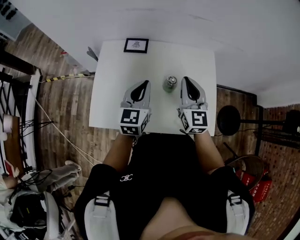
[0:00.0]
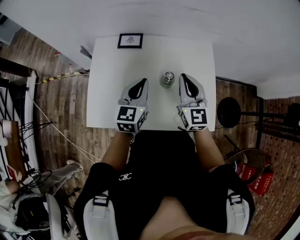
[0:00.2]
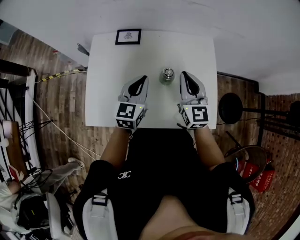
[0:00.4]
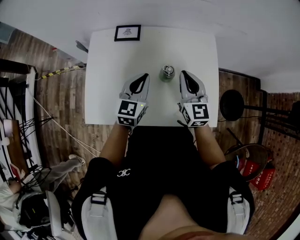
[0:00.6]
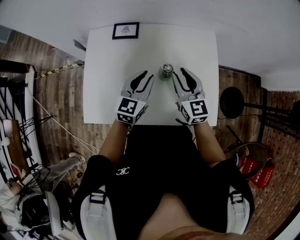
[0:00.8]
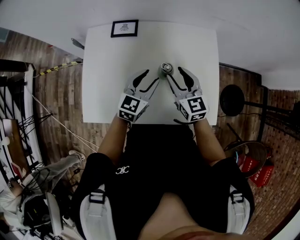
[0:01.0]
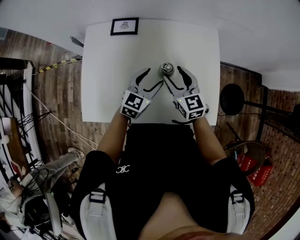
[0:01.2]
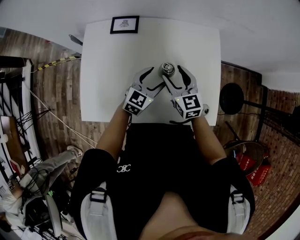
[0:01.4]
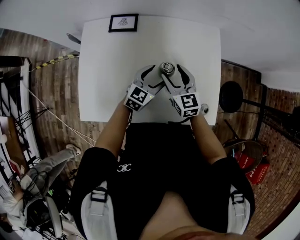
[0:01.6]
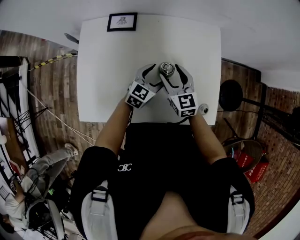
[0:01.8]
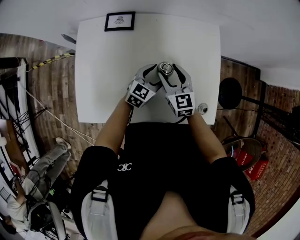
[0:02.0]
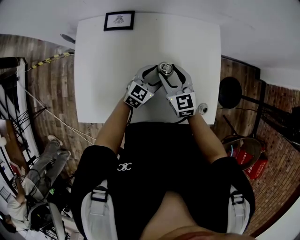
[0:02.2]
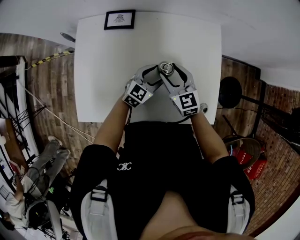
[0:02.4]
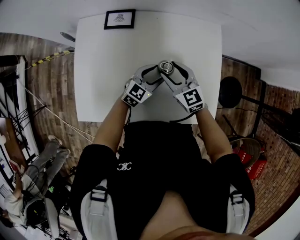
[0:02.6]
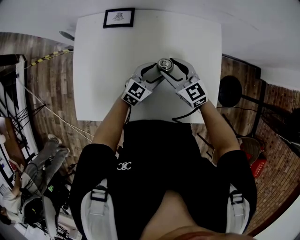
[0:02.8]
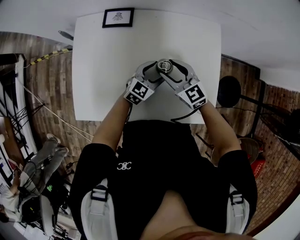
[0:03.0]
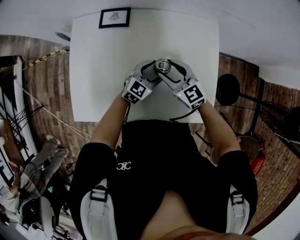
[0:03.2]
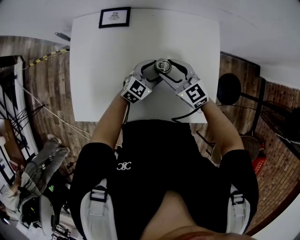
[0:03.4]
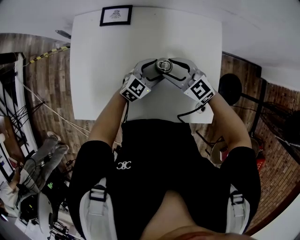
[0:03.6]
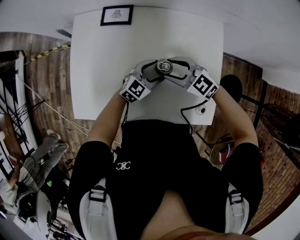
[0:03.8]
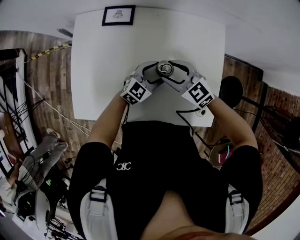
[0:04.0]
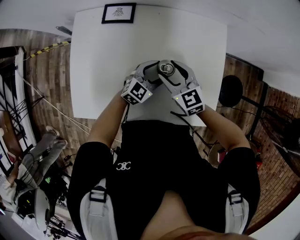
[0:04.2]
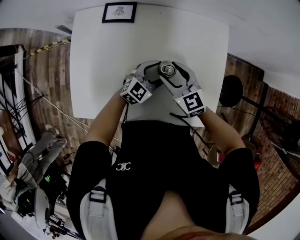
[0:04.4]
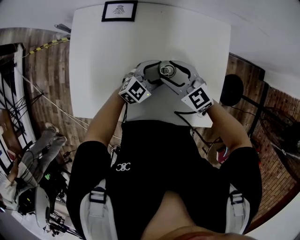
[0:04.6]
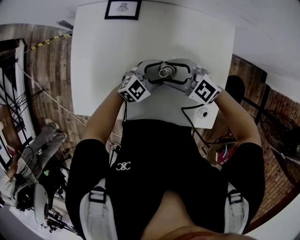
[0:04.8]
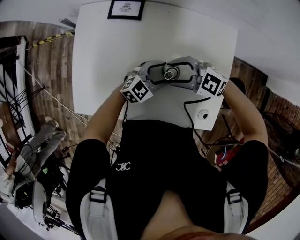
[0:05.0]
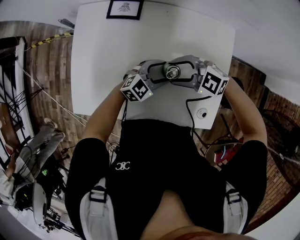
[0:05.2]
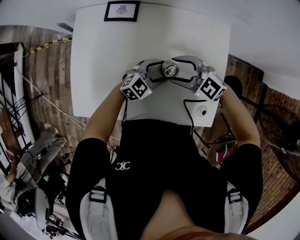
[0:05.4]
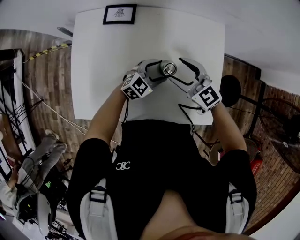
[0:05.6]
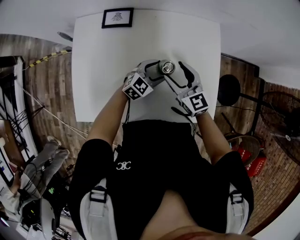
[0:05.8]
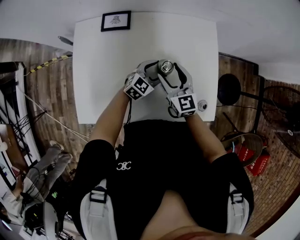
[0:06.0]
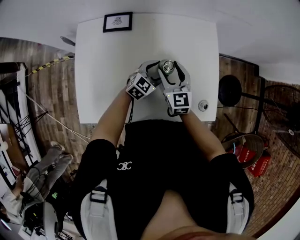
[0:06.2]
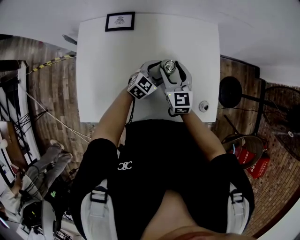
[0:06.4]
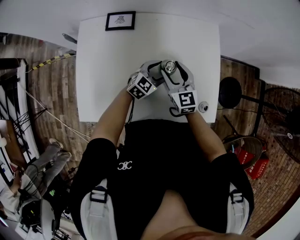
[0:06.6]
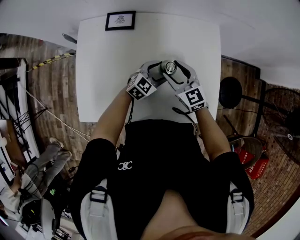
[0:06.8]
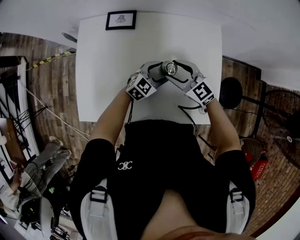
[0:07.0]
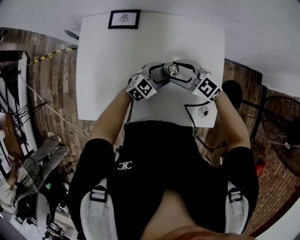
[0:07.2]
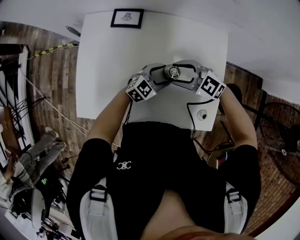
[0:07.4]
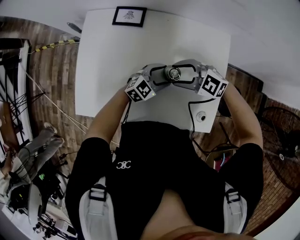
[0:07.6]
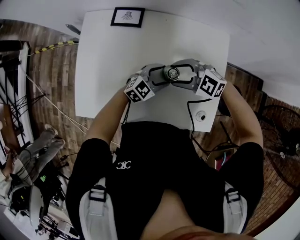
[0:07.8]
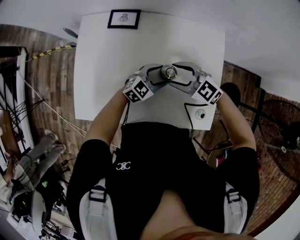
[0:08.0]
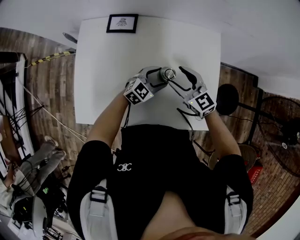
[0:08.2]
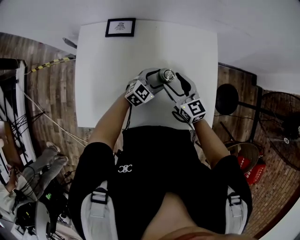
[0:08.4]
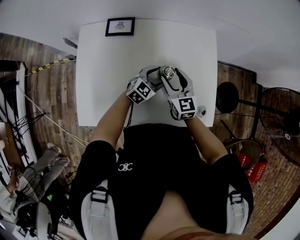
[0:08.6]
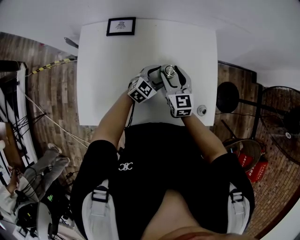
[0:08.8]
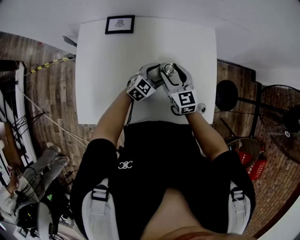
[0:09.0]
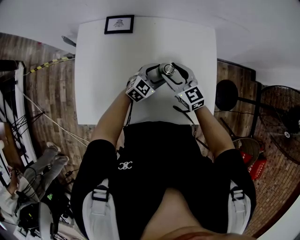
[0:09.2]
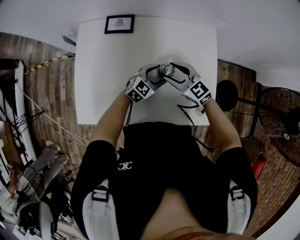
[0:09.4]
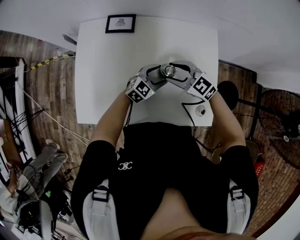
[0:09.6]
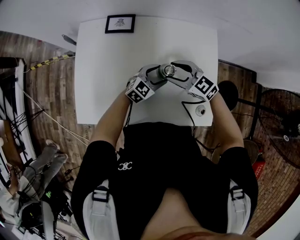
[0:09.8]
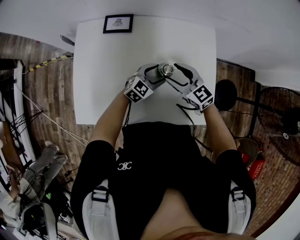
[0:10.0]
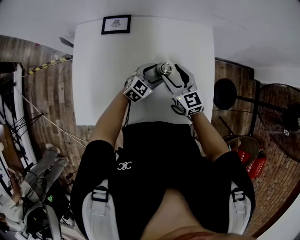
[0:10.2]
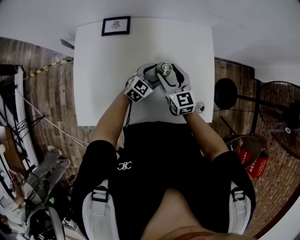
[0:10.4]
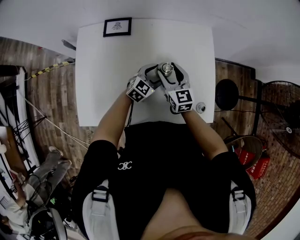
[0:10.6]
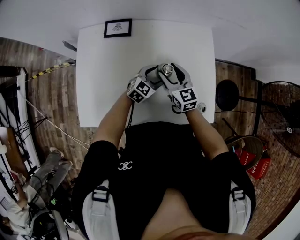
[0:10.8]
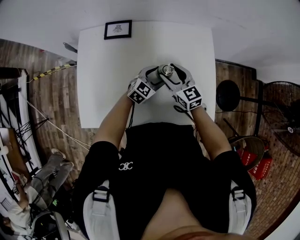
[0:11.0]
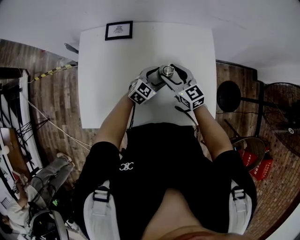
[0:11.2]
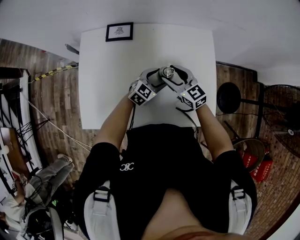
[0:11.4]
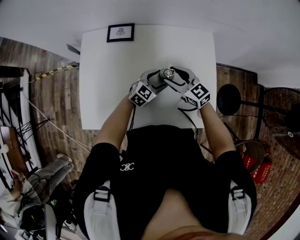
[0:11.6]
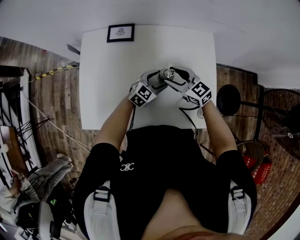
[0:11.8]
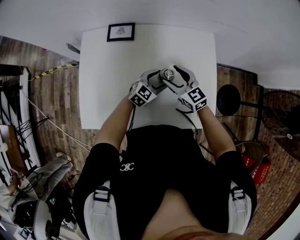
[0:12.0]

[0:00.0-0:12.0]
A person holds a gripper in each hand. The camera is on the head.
0:00.0 to 0:01.6: The right gripper shifts roughly 15 cm downward, changes its angle by approximately 20 degrees, and opens, while the left gripper moves downward and to the right, some 20 cm, changes its angle by approximately 30 degrees, and opens its fingers.
0:01.6 to 0:03.0: The right gripper swivels about 20 degrees.
0:04.4 to 0:06.0: The right gripper changes its angle by approximately 20 degrees.
0:06.0 to 0:07.6: The right gripper swivels some 70 degrees.
0:07.6 to 0:09.0: The right gripper turns by approximately 70 degrees.

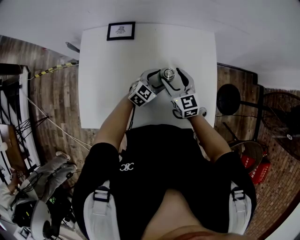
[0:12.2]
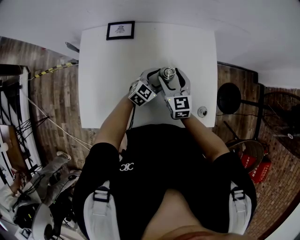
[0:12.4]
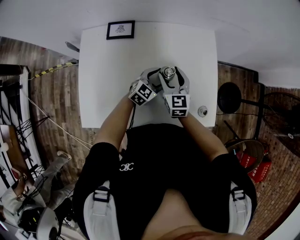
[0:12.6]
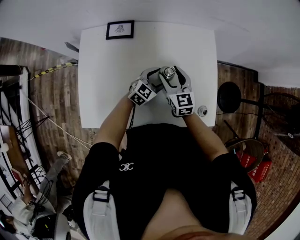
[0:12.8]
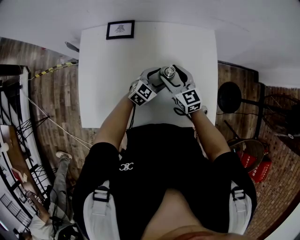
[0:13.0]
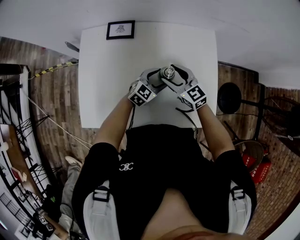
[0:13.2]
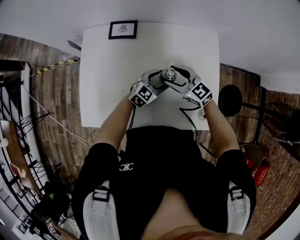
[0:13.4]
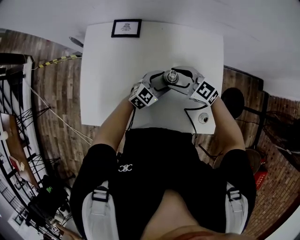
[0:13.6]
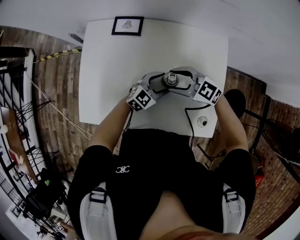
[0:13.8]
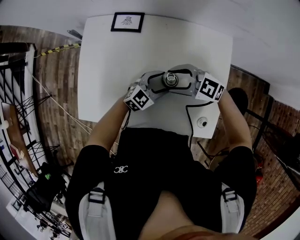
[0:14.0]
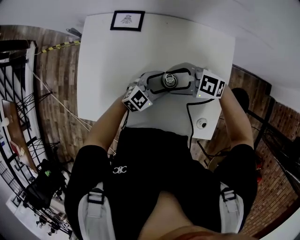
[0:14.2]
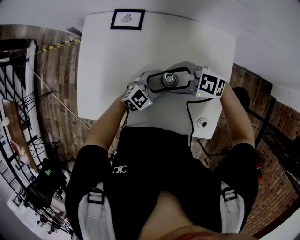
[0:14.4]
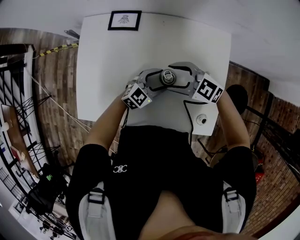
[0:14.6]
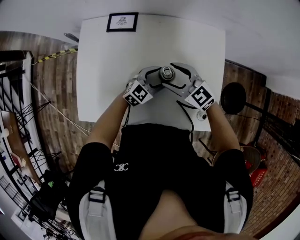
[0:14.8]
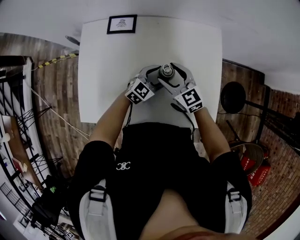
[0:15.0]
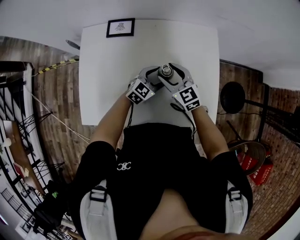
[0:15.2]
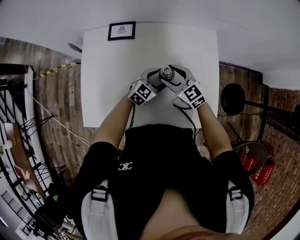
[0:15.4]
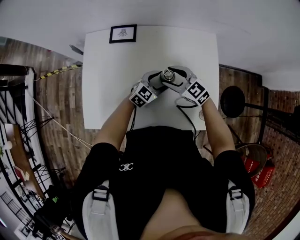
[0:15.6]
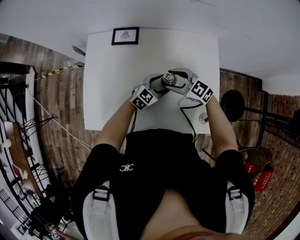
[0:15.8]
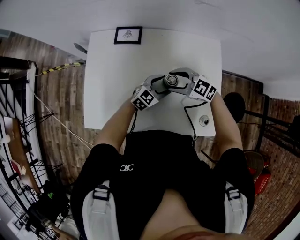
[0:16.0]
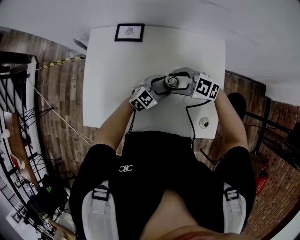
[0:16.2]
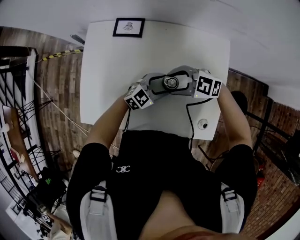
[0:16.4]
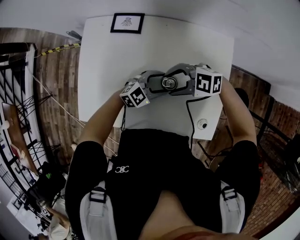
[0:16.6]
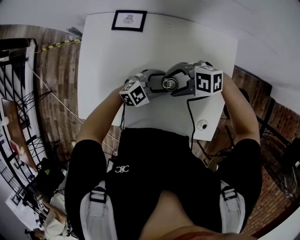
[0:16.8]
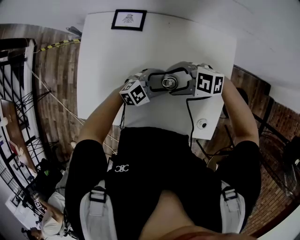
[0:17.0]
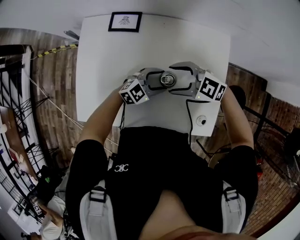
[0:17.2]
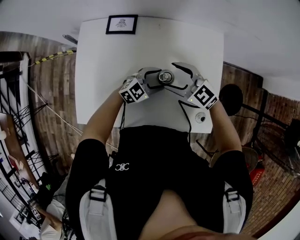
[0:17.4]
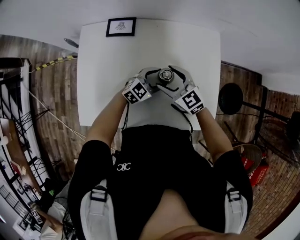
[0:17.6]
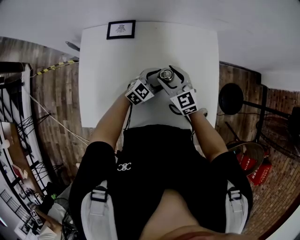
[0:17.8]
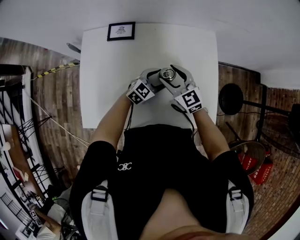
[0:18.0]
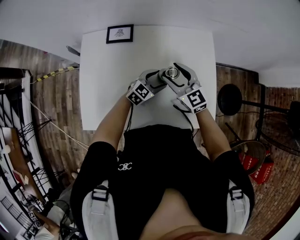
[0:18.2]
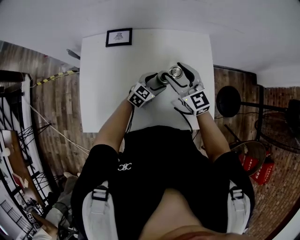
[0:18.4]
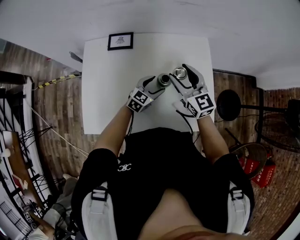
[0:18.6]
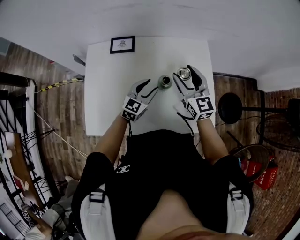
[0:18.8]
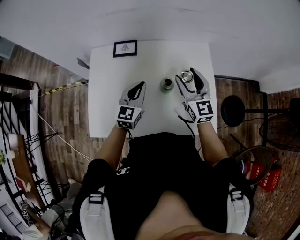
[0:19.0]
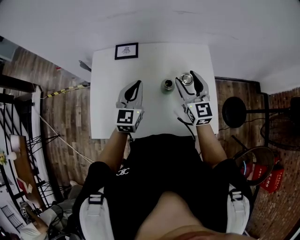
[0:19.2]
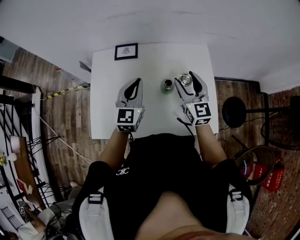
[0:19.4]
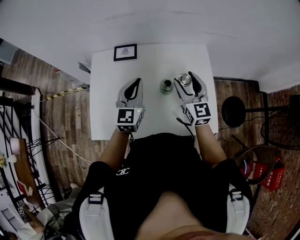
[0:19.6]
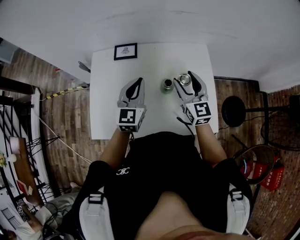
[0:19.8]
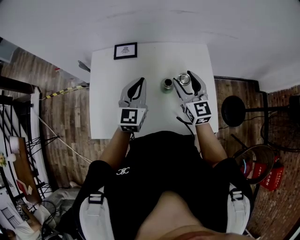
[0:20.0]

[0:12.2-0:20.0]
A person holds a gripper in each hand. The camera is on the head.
0:12.2 to 0:13.8: The right gripper swivels approximately 50 degrees.
0:13.8 to 0:15.4: The right gripper rotates approximately 30 degrees.
0:15.4 to 0:16.8: The right gripper turns by some 70 degrees.
0:16.8 to 0:18.4: The right gripper heads upward, covering some 10 cm, and rotates about 80 degrees.
0:18.4 to 0:20.0: The right gripper ends up about 5 cm from where it was, while the left gripper shifts about 25 cm upward and to the left, turns by approximately 40 degrees, and closes up.

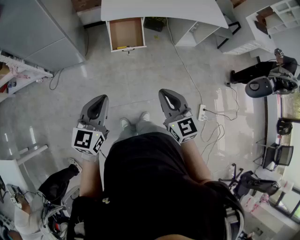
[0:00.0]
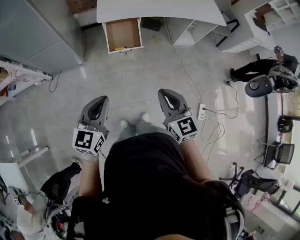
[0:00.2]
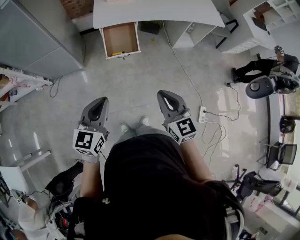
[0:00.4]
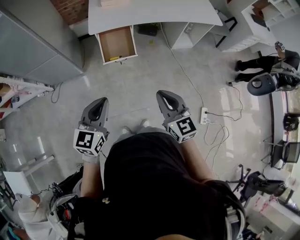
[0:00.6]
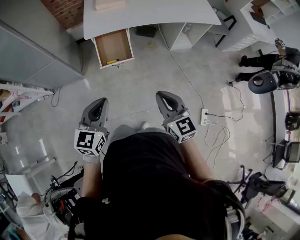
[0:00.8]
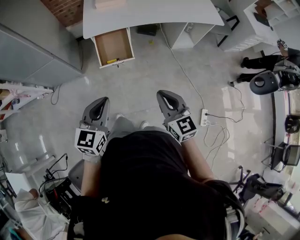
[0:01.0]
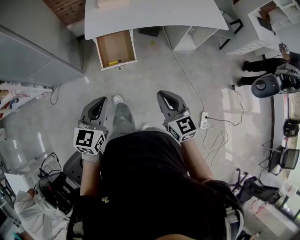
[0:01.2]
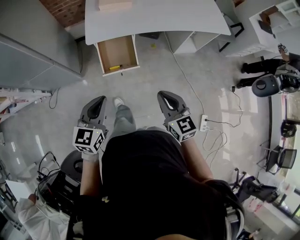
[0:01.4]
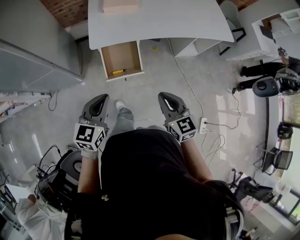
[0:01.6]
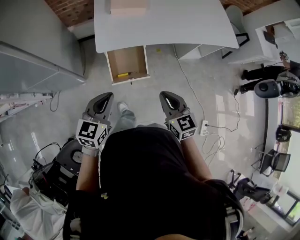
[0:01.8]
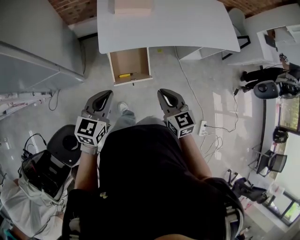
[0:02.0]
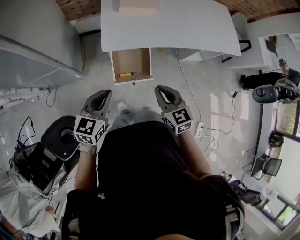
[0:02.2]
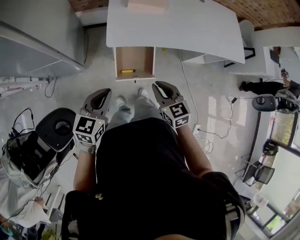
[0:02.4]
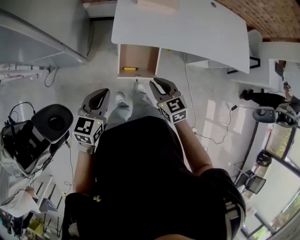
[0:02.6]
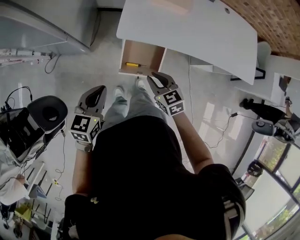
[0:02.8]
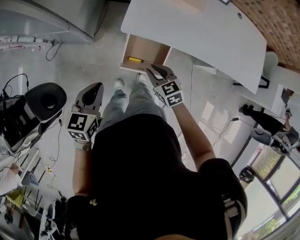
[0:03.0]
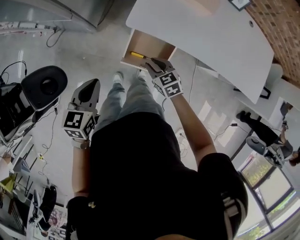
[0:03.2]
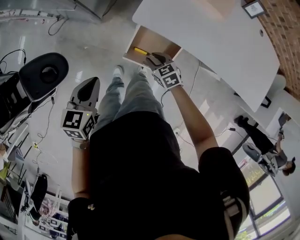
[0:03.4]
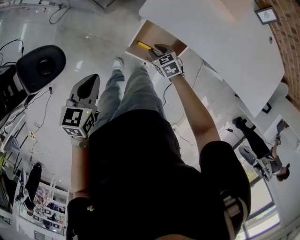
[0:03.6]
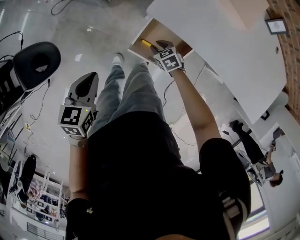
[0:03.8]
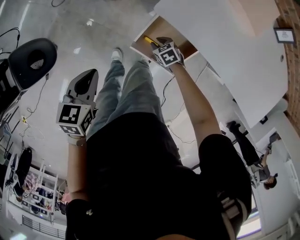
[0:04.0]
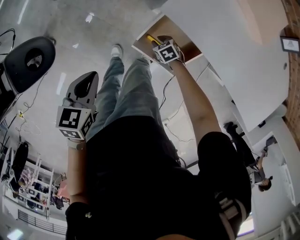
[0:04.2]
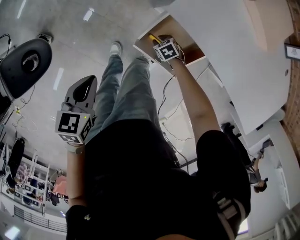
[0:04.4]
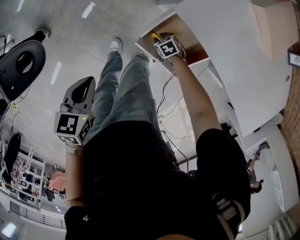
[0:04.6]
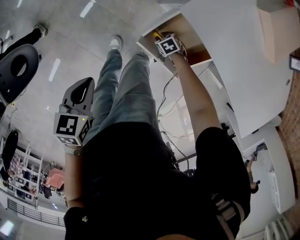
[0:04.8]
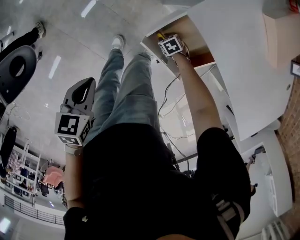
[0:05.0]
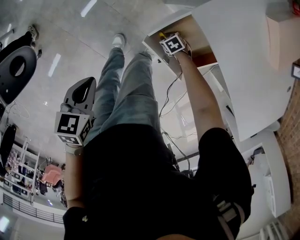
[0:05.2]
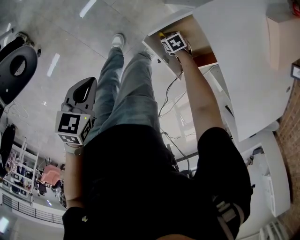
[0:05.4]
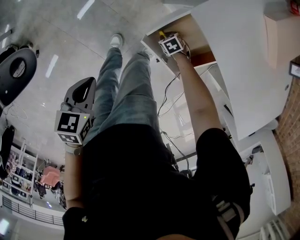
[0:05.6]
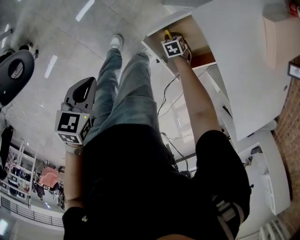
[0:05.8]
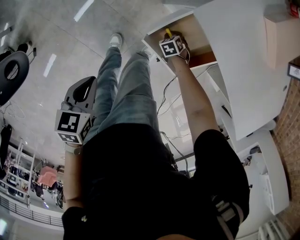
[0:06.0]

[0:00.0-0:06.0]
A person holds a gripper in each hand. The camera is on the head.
0:00.0 to 0:01.6: Both grippers move forward, approximately 30 cm.
0:01.6 to 0:03.0: The left gripper moves approximately 15 cm, and turns by approximately 30 degrees; the right gripper changes place by roughly 30 cm, and changes its angle by approximately 40 degrees.
0:03.0 to 0:04.4: The right gripper heads downward, covering roughly 40 cm, and swivels some 40 degrees. The left gripper goes about 15 cm downward, and rotates roughly 30 degrees.
0:04.4 to 0:06.0: The left gripper moves approximately 5 cm.
